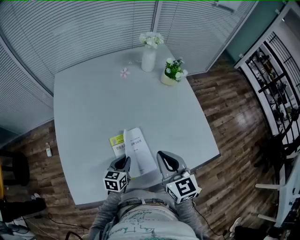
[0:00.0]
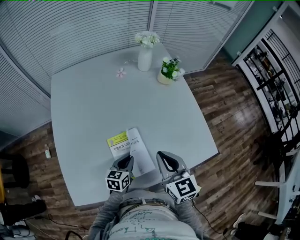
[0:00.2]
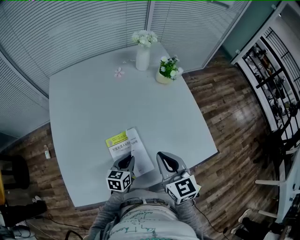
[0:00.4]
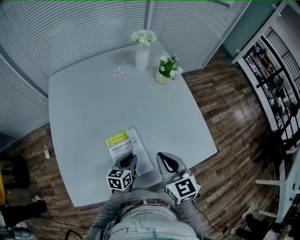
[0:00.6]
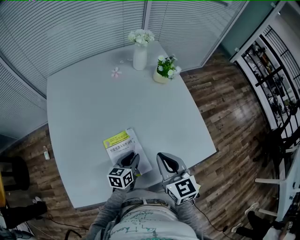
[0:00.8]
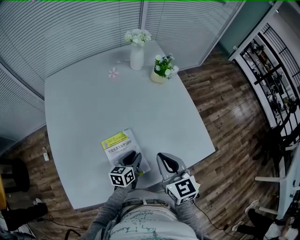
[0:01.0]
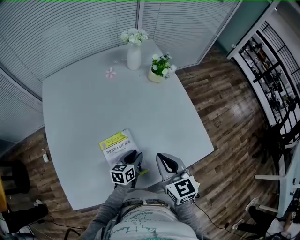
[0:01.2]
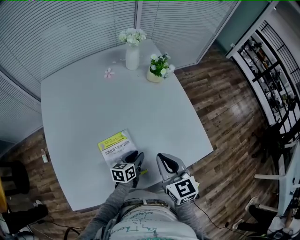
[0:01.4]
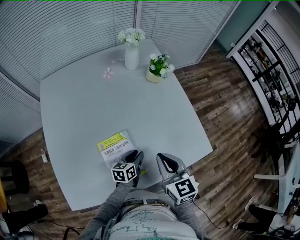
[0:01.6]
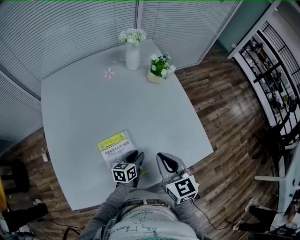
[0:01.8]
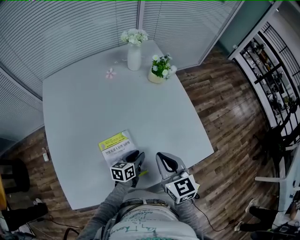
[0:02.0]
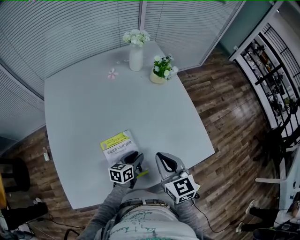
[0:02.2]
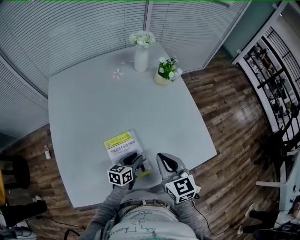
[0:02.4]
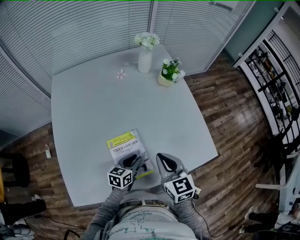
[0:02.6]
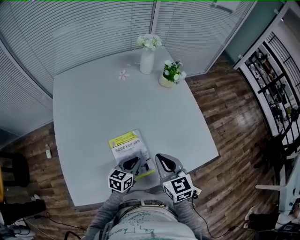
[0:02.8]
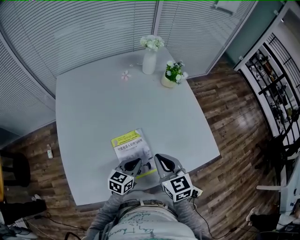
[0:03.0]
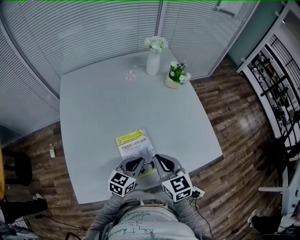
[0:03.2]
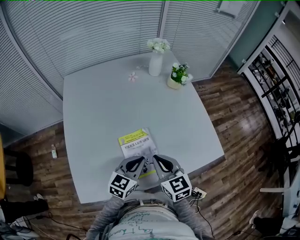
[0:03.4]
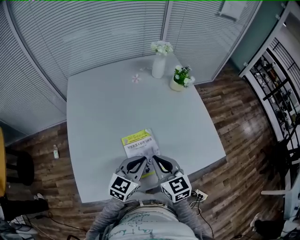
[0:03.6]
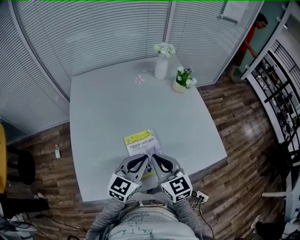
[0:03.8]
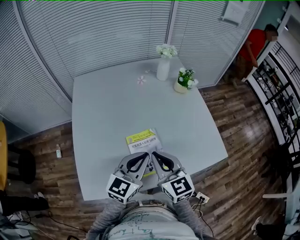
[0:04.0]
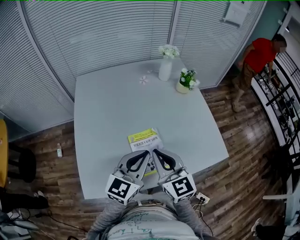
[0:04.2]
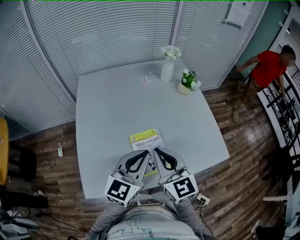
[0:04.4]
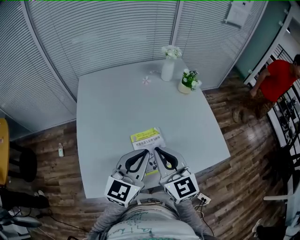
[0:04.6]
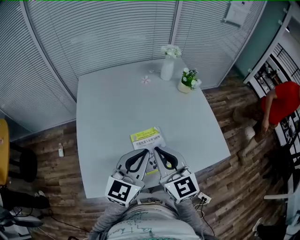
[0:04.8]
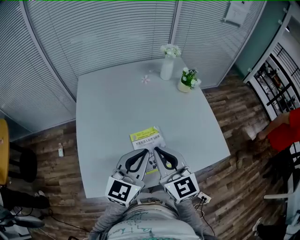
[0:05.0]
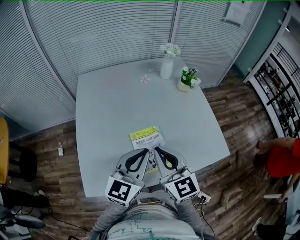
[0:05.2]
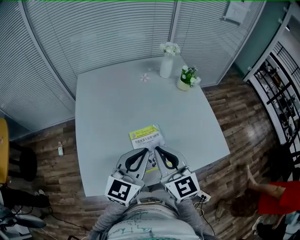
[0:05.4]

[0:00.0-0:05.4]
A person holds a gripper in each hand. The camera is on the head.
0:00.0 to 0:01.4: The left gripper heads to the right and forward, covering approximately 15 cm, and opens up, while the right gripper shifts roughly 5 cm to the right.
0:01.4 to 0:02.8: The two grippers go some 5 cm to the left. The left gripper closes.
0:02.8 to 0:04.0: The left gripper travels upward by approximately 20 cm, and turns by approximately 30 degrees. Meanwhile the right gripper moves to the left, upward and backward, some 15 cm.
0:04.0 to 0:05.4: The left gripper shifts by approximately 5 cm; the right gripper is displaced upward by about 5 cm.

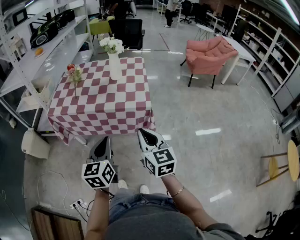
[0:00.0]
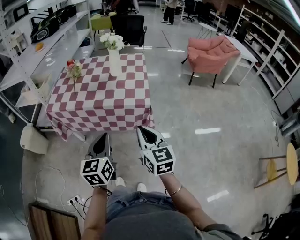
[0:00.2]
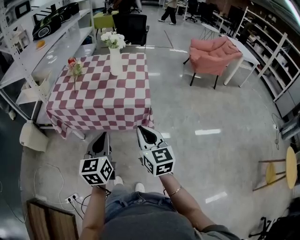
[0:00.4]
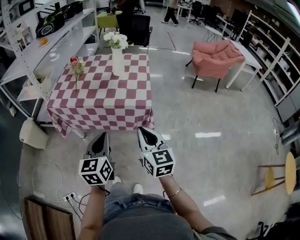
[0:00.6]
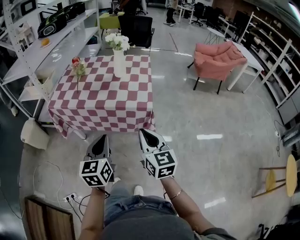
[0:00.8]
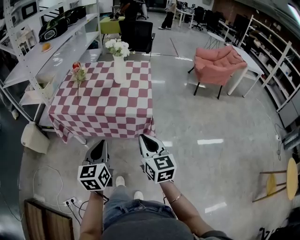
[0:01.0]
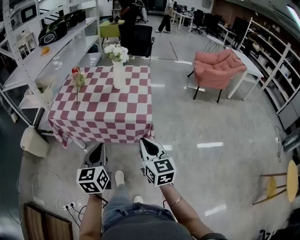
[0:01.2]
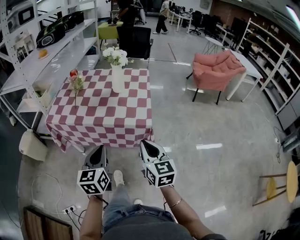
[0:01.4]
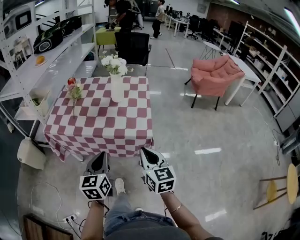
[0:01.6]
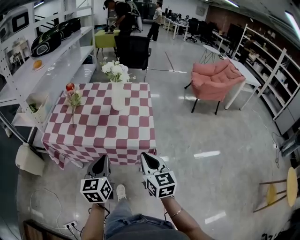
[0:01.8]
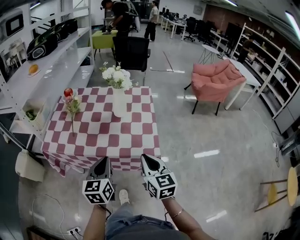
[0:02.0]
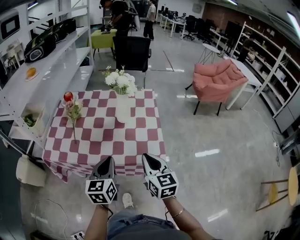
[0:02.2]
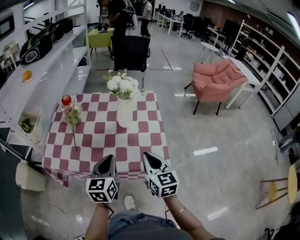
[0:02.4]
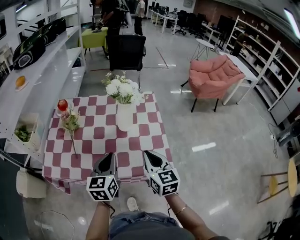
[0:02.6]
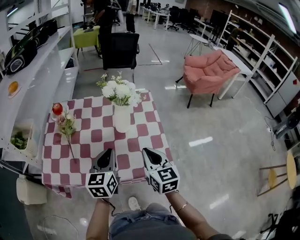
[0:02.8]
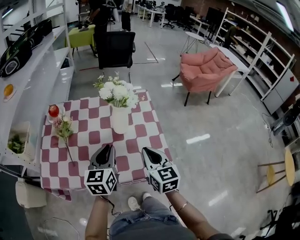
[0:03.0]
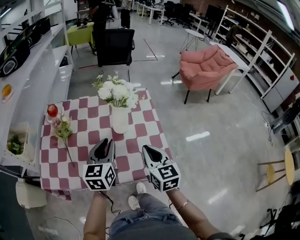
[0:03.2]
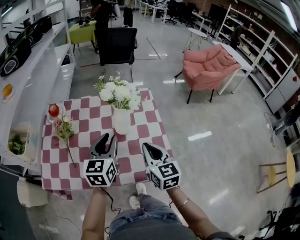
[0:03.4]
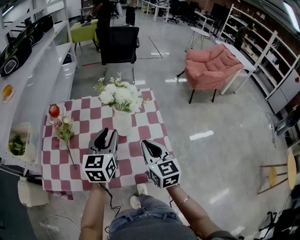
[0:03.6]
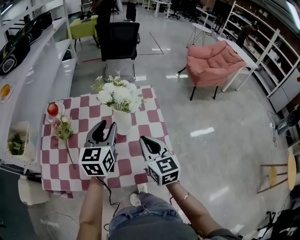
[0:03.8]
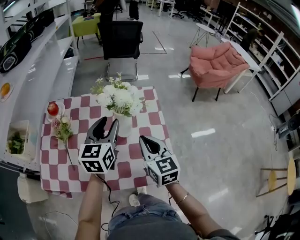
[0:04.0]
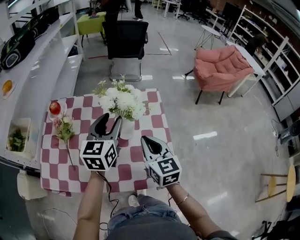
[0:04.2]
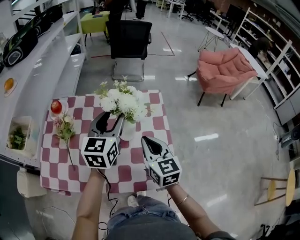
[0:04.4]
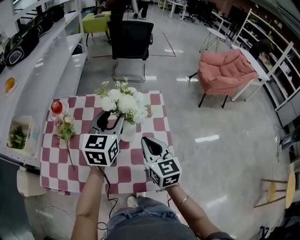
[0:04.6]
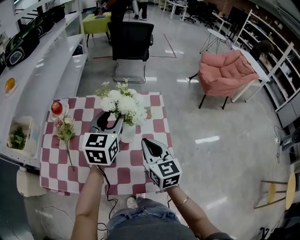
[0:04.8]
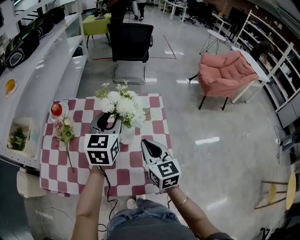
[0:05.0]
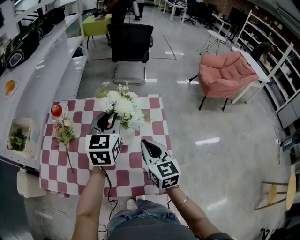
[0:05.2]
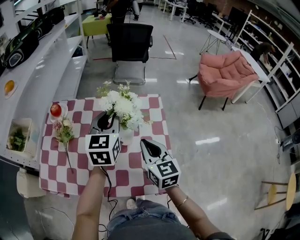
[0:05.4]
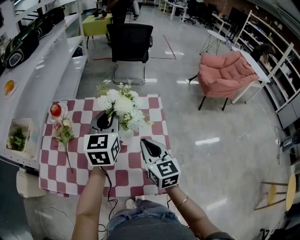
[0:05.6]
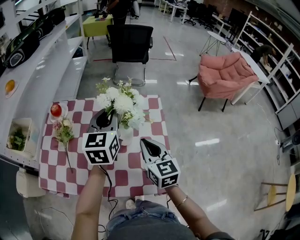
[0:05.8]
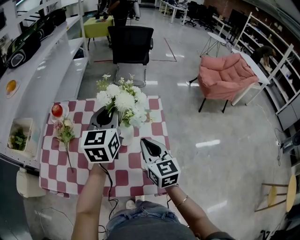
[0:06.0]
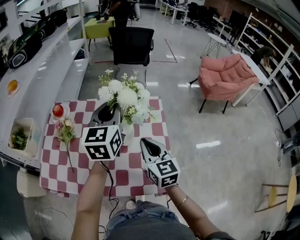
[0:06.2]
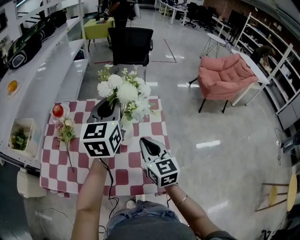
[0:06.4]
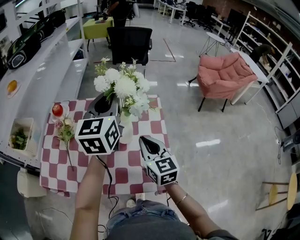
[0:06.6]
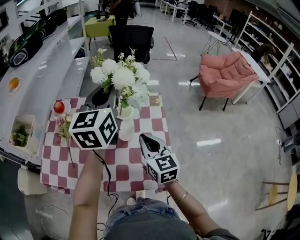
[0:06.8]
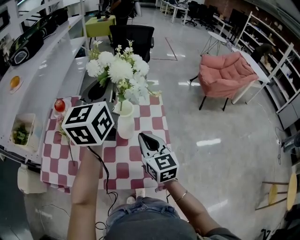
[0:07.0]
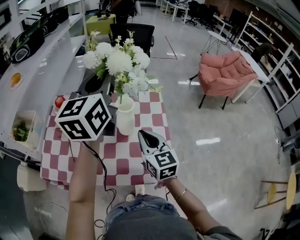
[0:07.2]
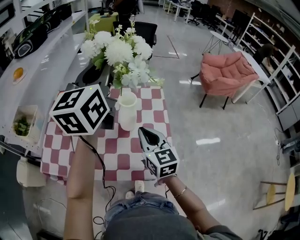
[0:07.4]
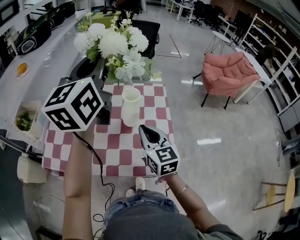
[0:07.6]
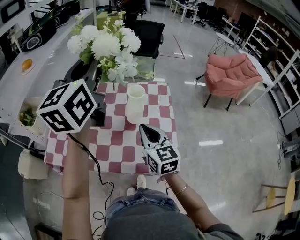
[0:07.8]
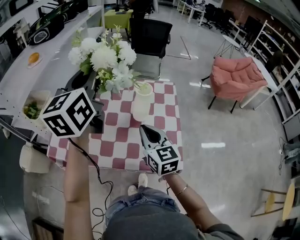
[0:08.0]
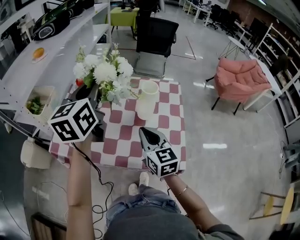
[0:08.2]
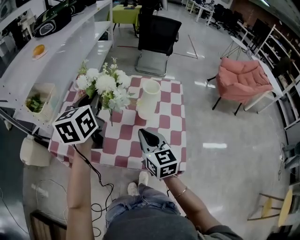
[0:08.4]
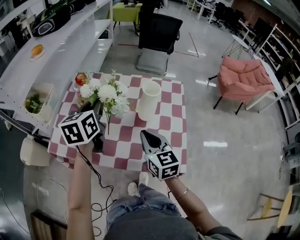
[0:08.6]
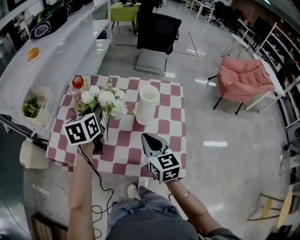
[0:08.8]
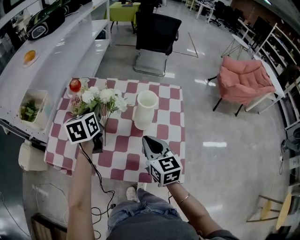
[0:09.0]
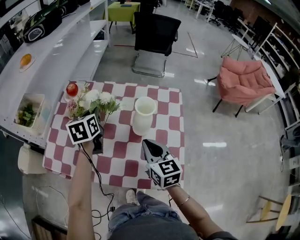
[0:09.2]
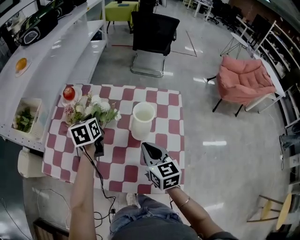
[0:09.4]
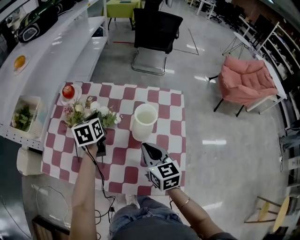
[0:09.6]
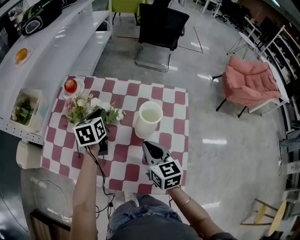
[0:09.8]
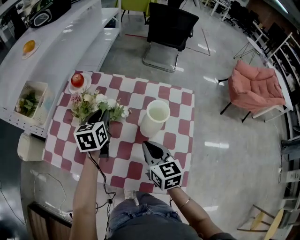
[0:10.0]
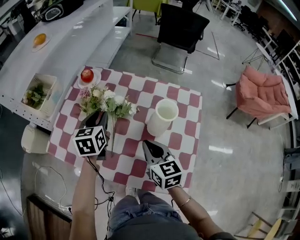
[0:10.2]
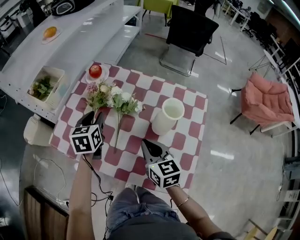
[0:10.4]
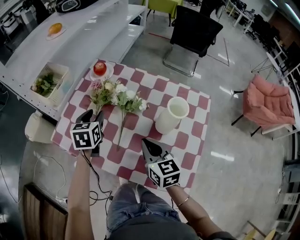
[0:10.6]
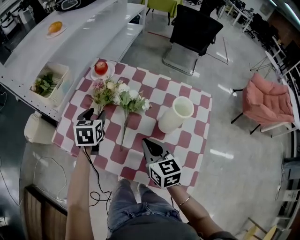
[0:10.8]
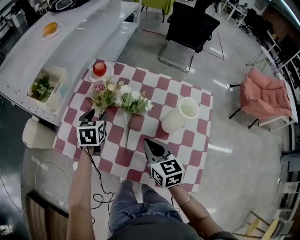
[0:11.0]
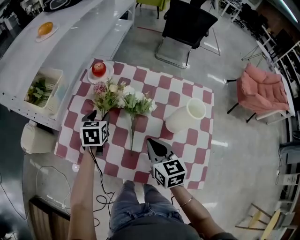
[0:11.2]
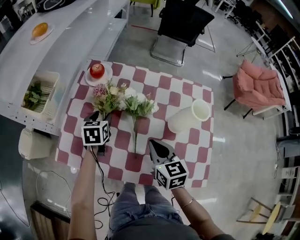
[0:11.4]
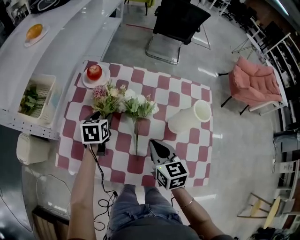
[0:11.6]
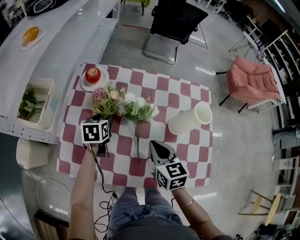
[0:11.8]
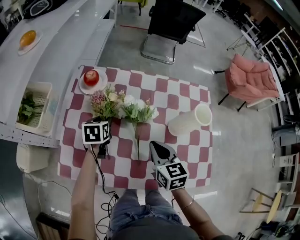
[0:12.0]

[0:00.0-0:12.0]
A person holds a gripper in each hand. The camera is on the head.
0:00.0 to 0:01.6: Both grippers travel together forward, about 10 cm.
0:01.6 to 0:03.0: Both grippers move forward, some 30 cm.
0:03.0 to 0:04.4: The right gripper moves forward, some 10 cm. Meanwhile the left gripper travels forward and upward by roughly 20 cm, and opens up.
0:04.4 to 0:06.0: The left gripper closes its fingers.
0:06.0 to 0:07.6: The right gripper goes roughly 10 cm to the left and backward; the left gripper travels upward, to the left and backward by roughly 20 cm.
0:07.6 to 0:09.0: The right gripper shifts by some 5 cm. Meanwhile the left gripper heads downward, covering some 25 cm, and tips its fingers downward by approximately 40 degrees.
0:09.0 to 0:10.4: The right gripper goes some 5 cm to the left, while the left gripper travels to the left and downward by roughly 10 cm, and opens.
0:10.4 to 0:12.0: The right gripper travels to the left and forward by some 10 cm, while the left gripper heads downward and forward, covering roughly 15 cm, and rotates some 30 degrees.

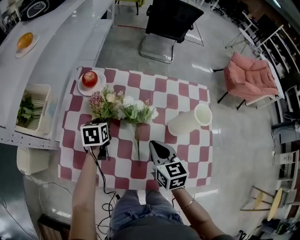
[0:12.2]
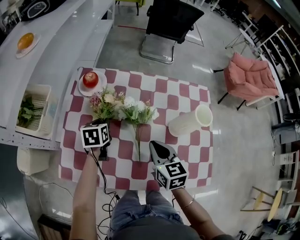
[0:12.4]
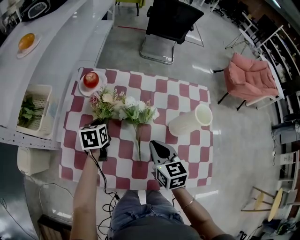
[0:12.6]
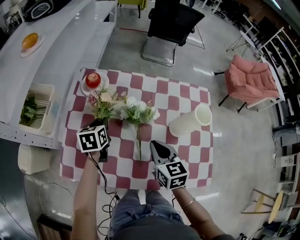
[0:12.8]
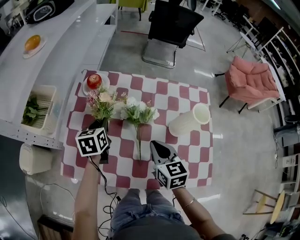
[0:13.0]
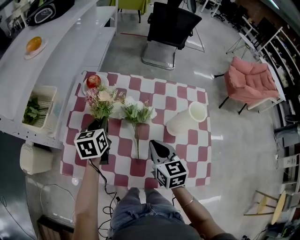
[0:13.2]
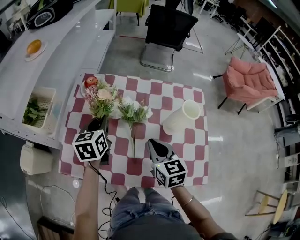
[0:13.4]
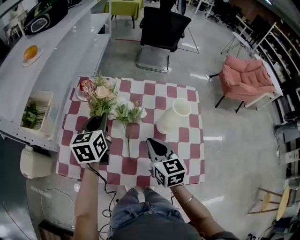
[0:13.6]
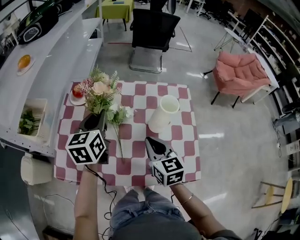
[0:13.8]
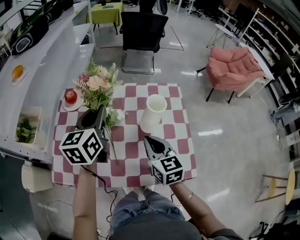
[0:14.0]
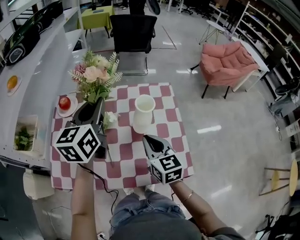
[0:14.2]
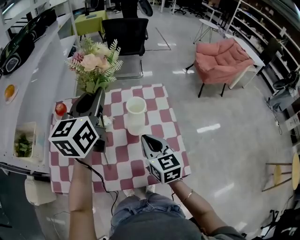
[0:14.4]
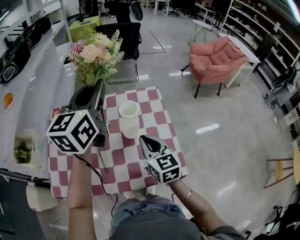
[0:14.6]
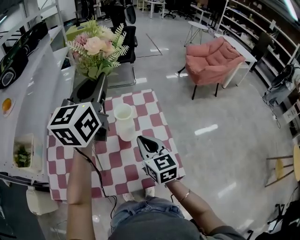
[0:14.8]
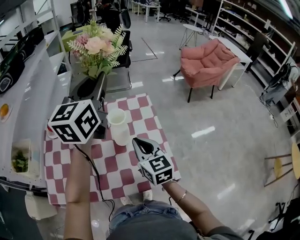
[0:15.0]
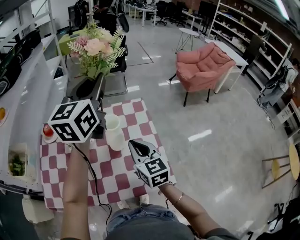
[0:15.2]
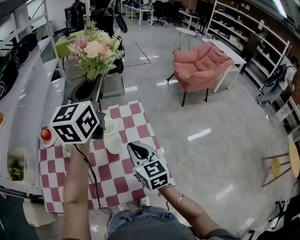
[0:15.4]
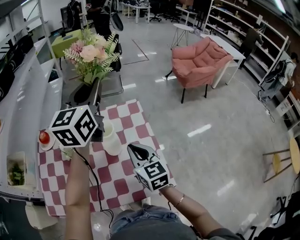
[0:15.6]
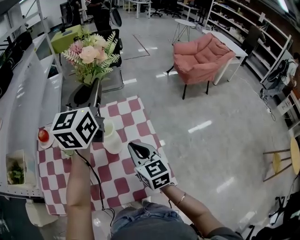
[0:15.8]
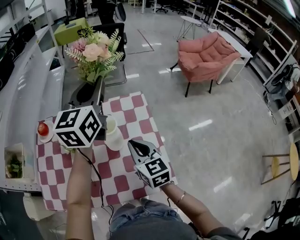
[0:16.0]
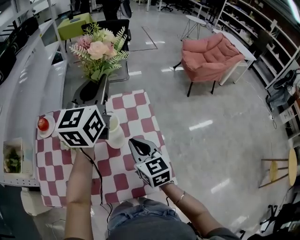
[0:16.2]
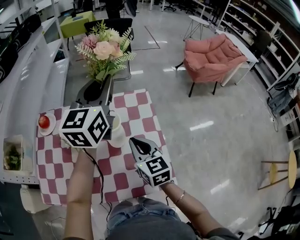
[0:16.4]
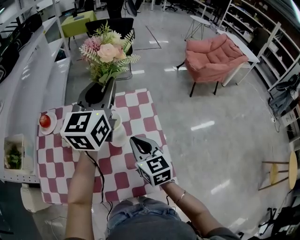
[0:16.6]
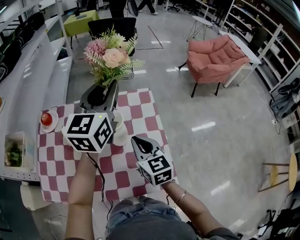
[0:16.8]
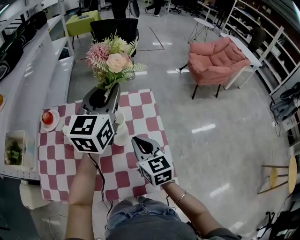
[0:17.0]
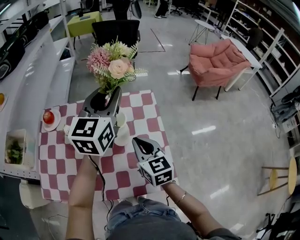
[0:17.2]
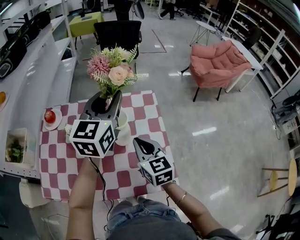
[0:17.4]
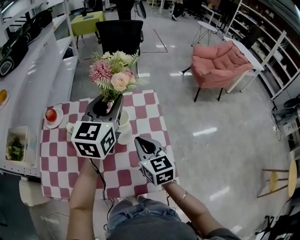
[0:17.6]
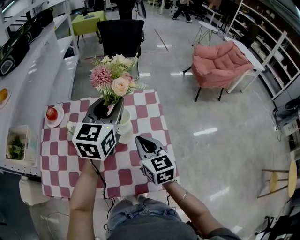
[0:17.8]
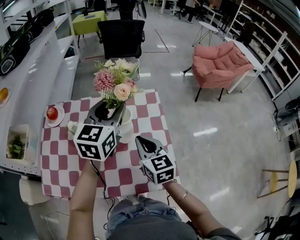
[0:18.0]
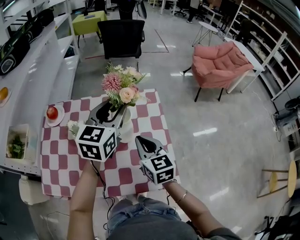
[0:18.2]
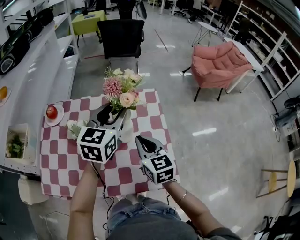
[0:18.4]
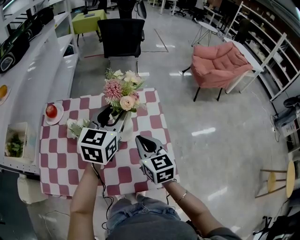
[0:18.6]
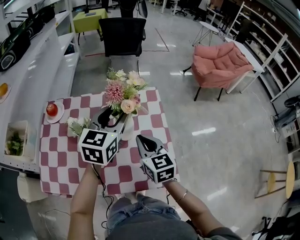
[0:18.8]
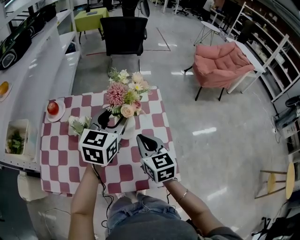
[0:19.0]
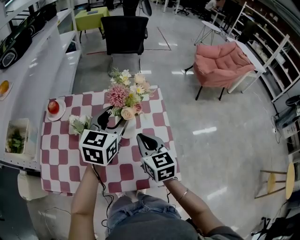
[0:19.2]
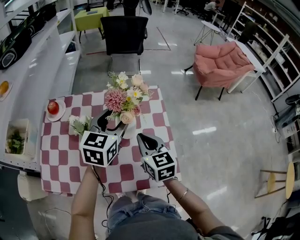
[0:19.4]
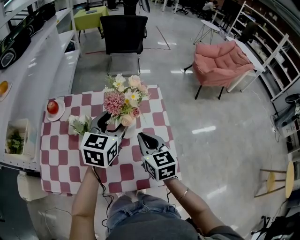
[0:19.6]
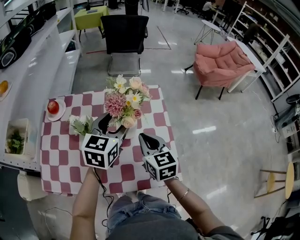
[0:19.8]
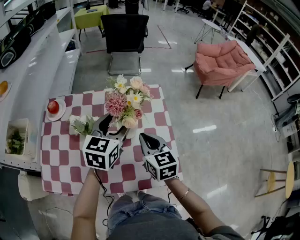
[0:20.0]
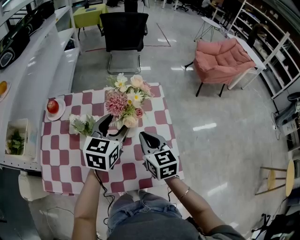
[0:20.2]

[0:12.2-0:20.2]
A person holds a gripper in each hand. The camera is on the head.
0:12.2 to 0:13.8: The left gripper shifts roughly 25 cm upward and to the right, and changes its angle by roughly 30 degrees. The right gripper travels to the right and upward by approximately 10 cm.
0:13.8 to 0:15.4: The left gripper goes some 35 cm to the right and upward, and turns by roughly 30 degrees; the right gripper is displaced to the right and upward by about 15 cm.
0:15.4 to 0:17.0: The left gripper heads downward, covering about 10 cm.
0:17.0 to 0:18.6: The left gripper travels downward and backward by about 10 cm.
0:18.6 to 0:20.2: The left gripper goes roughly 5 cm downward.
